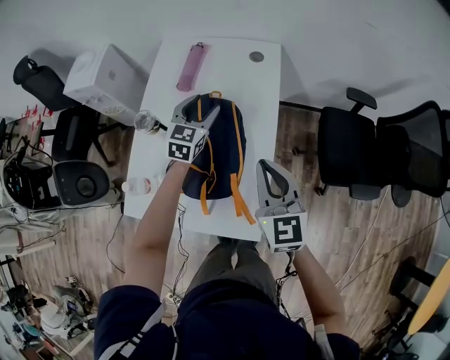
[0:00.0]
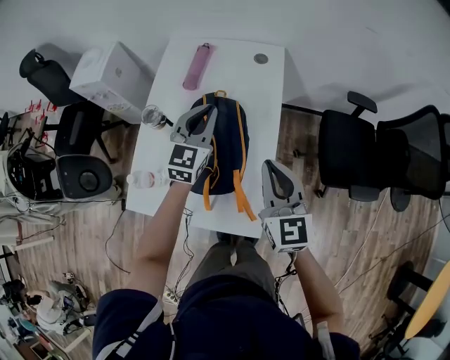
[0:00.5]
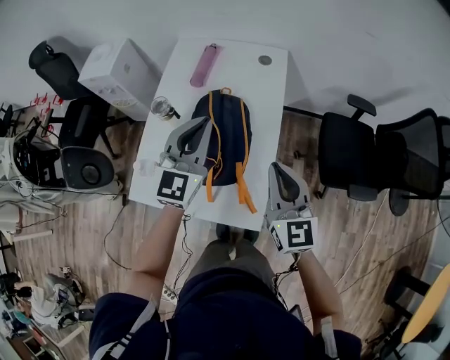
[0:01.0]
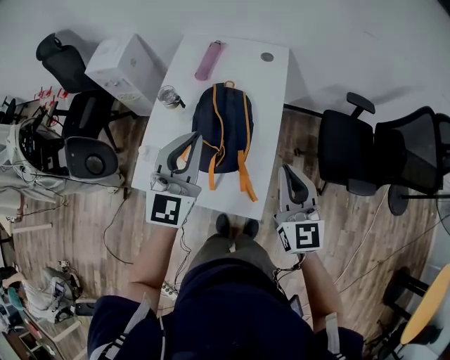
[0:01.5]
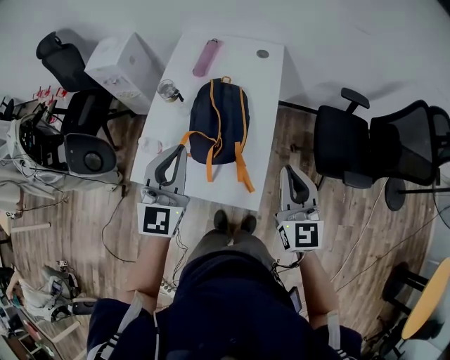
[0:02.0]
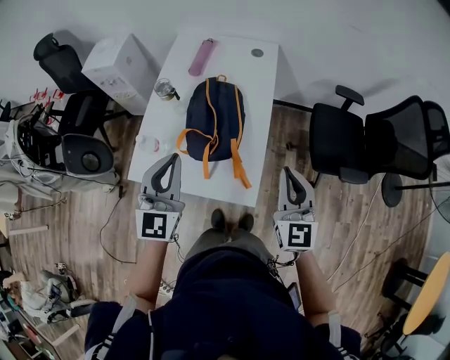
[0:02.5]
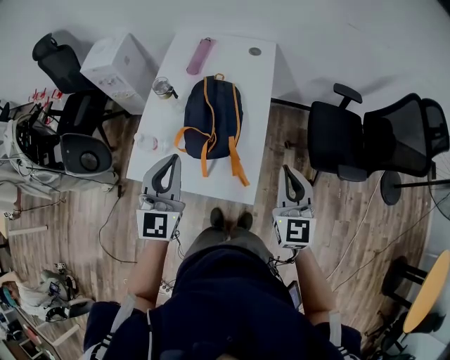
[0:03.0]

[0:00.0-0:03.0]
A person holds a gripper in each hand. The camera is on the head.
0:00.0 to 0:01.5: The left gripper is displaced backward and upward by roughly 30 cm, swivels some 20 degrees, and closes up, while the right gripper heads backward and upward, covering some 10 cm.
0:01.5 to 0:03.0: The left gripper is displaced backward by some 10 cm. The right gripper is displaced backward by roughly 5 cm.

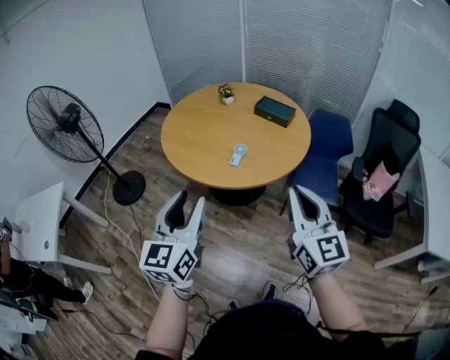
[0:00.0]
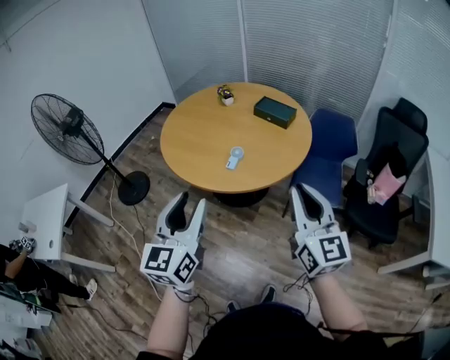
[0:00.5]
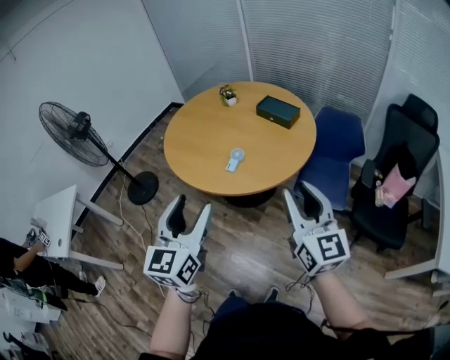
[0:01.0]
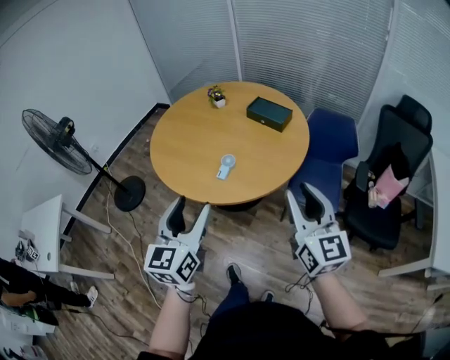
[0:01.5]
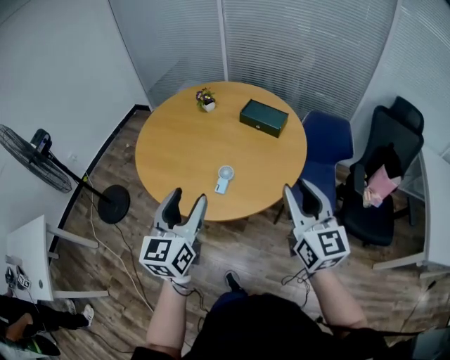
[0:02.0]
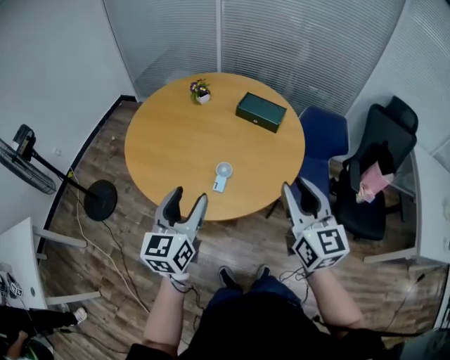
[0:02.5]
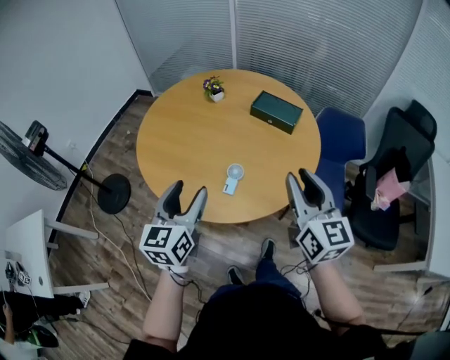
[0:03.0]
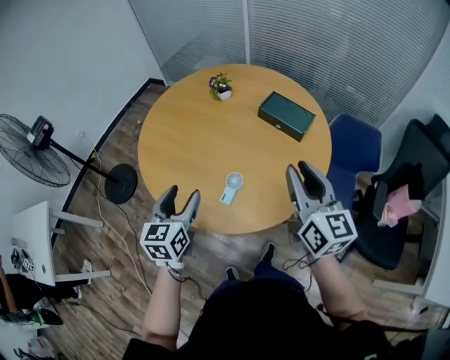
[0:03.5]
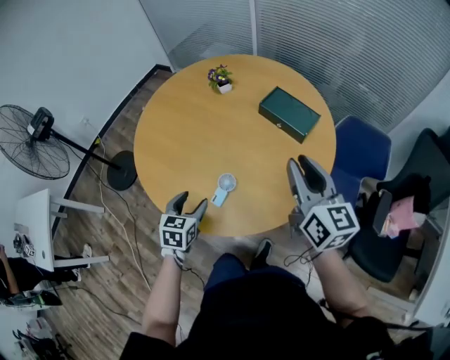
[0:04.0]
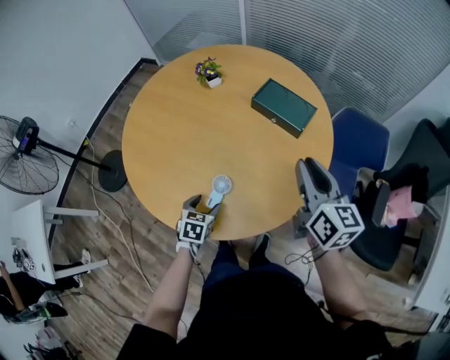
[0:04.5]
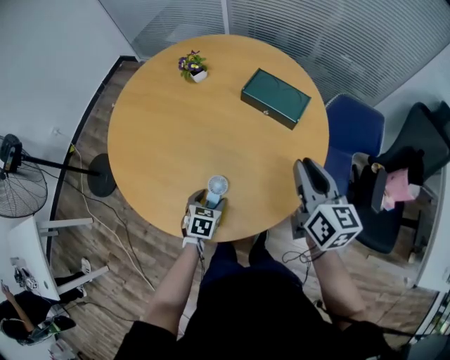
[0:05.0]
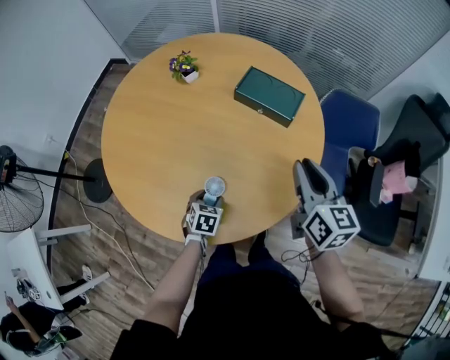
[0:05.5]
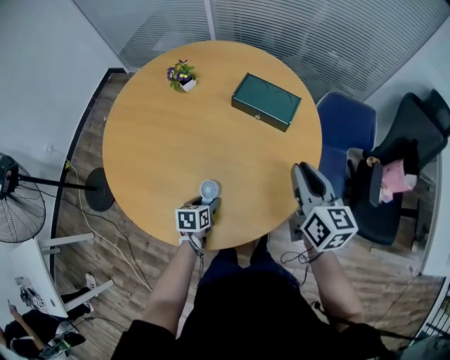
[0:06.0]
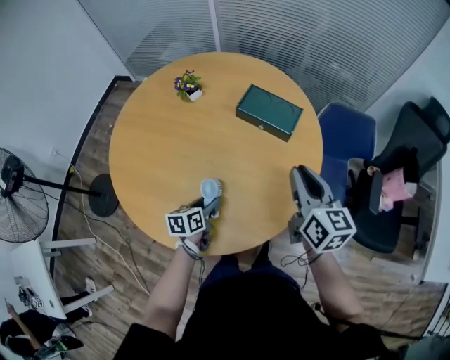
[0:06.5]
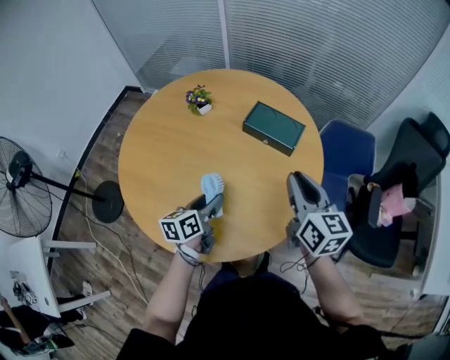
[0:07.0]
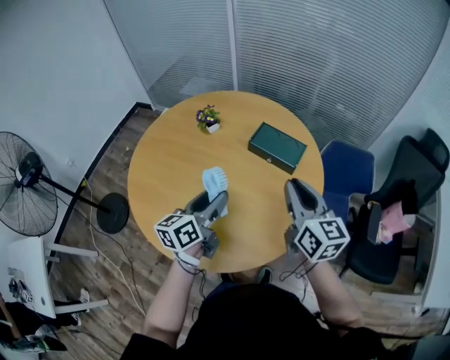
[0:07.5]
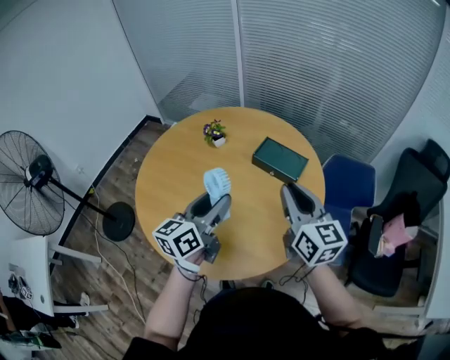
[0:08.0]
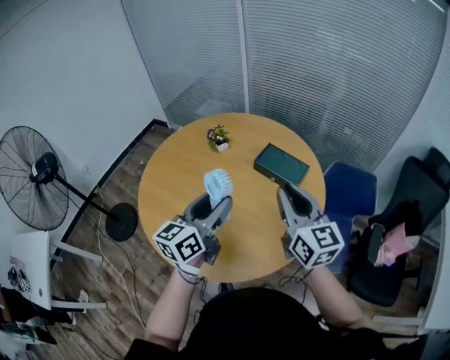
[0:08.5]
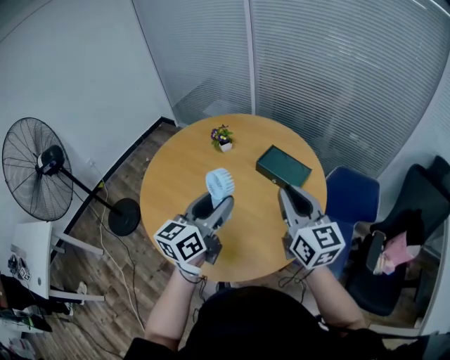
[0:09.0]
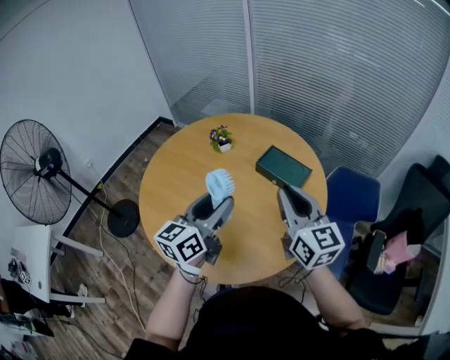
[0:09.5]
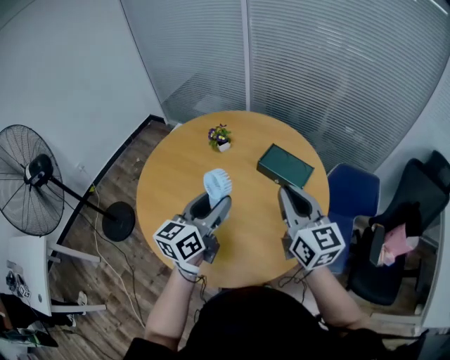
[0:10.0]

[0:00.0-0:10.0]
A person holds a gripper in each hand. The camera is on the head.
0:00.0 to 0:02.0: Both grippers move forward, about 25 cm. The right gripper opens.
0:02.0 to 0:04.0: The left gripper heads downward and forward, covering roughly 35 cm, and tips its fingers downward by about 40 degrees, while the right gripper goes about 30 cm forward.
0:04.0 to 0:06.0: The right gripper shifts some 10 cm downward and forward, and swivels about 20 degrees; the left gripper travels downward and forward by about 20 cm, and swivels some 30 degrees.
0:06.0 to 0:08.0: The left gripper moves upward, approximately 40 cm, and points its fingers some 50 degrees further upward, while the right gripper goes about 15 cm upward and to the left, and changes its angle by about 20 degrees.
0:08.0 to 0:10.0: The grippers make only small movements.

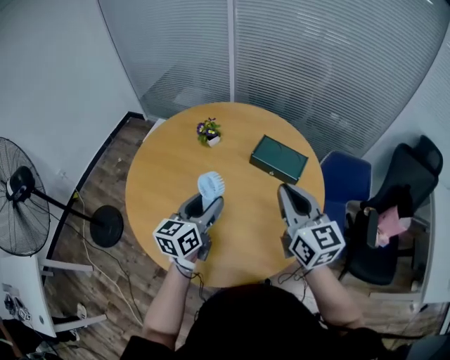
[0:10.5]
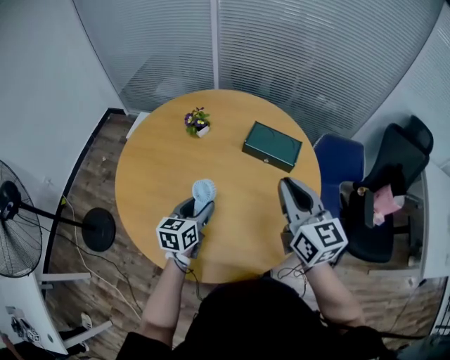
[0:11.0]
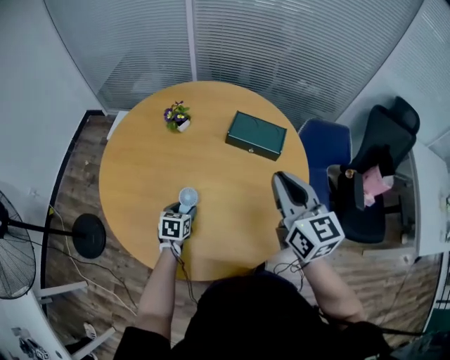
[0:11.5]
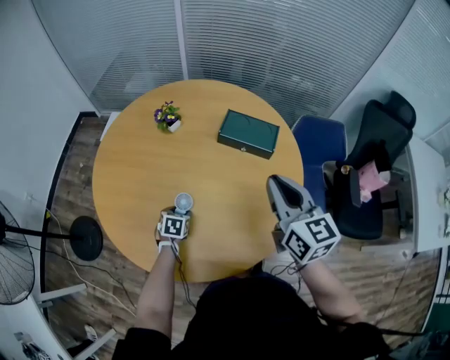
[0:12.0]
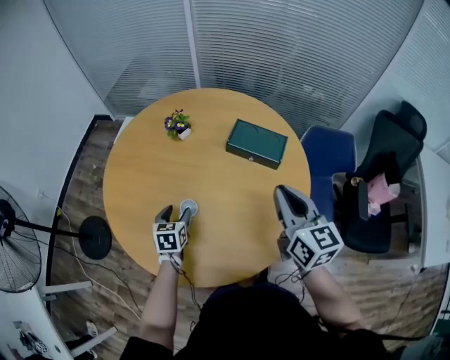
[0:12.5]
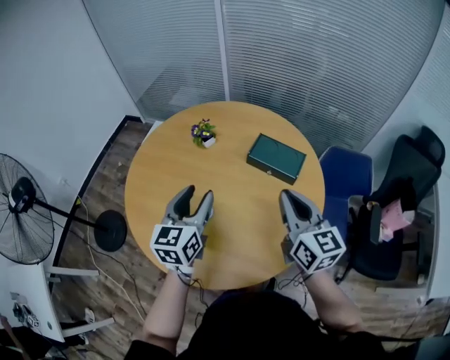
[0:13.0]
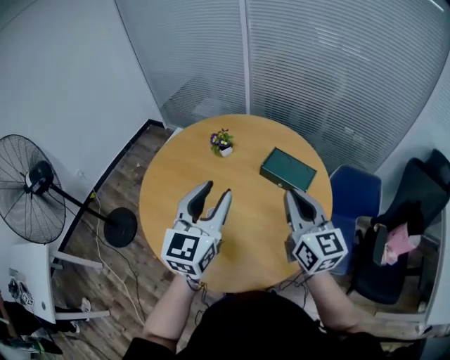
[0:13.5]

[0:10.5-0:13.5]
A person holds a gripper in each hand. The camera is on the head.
0:10.5 to 0:12.0: The left gripper is displaced downward by some 30 cm, and points its fingers some 50 degrees further downward.
0:12.0 to 0:13.5: The right gripper is displaced upward by approximately 5 cm, while the left gripper shifts roughly 40 cm upward, and tips its fingers upward by roughly 50 degrees.

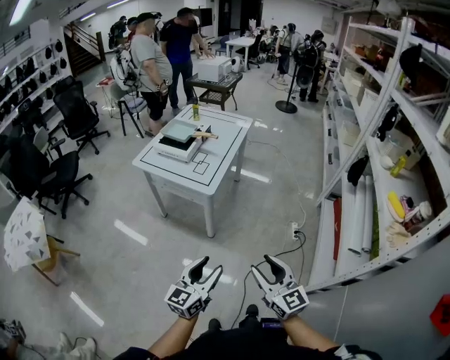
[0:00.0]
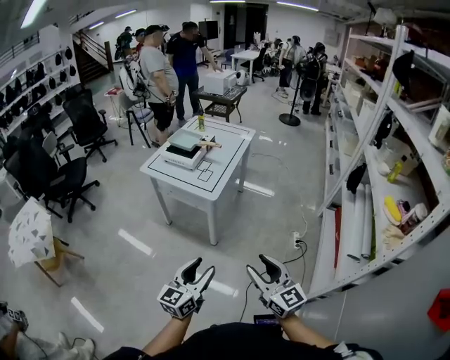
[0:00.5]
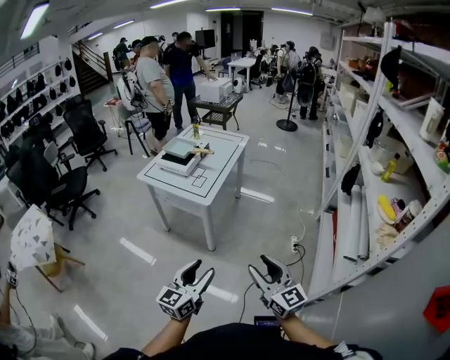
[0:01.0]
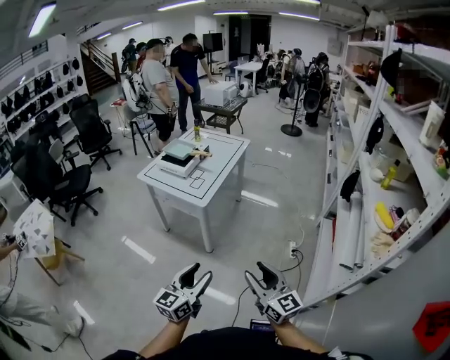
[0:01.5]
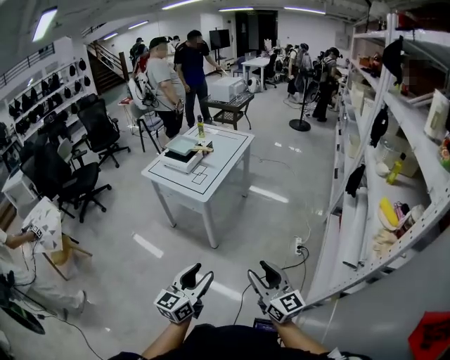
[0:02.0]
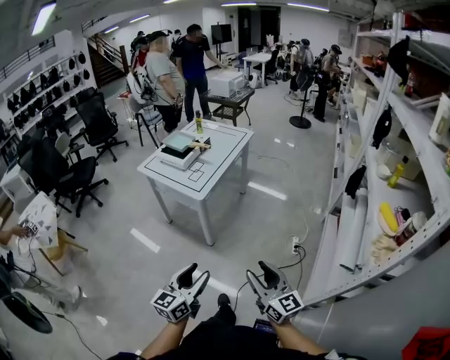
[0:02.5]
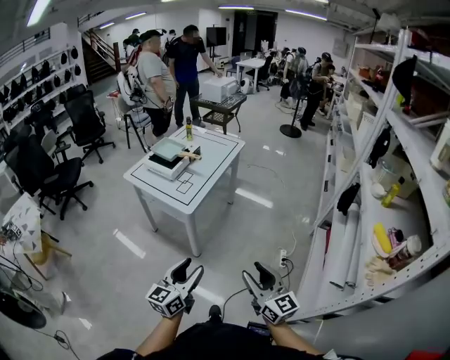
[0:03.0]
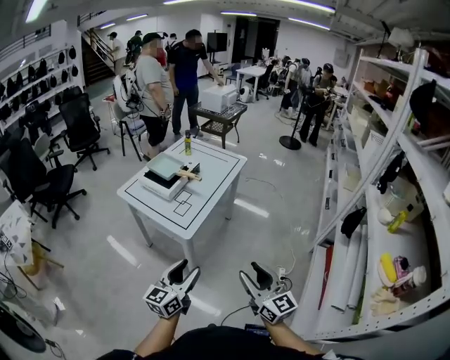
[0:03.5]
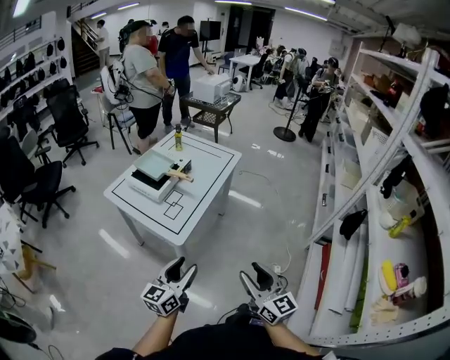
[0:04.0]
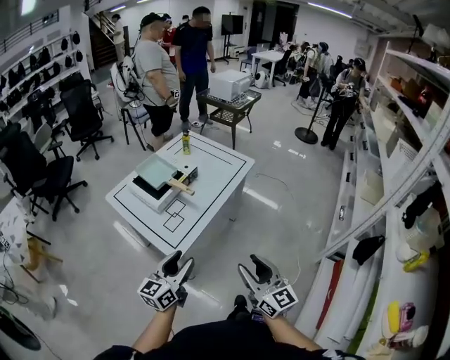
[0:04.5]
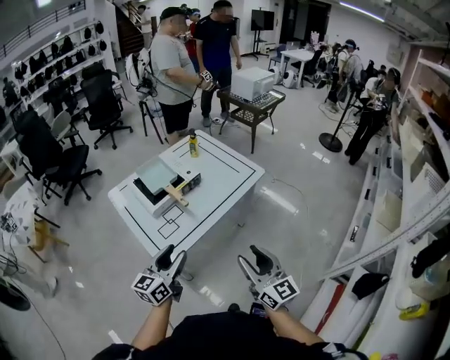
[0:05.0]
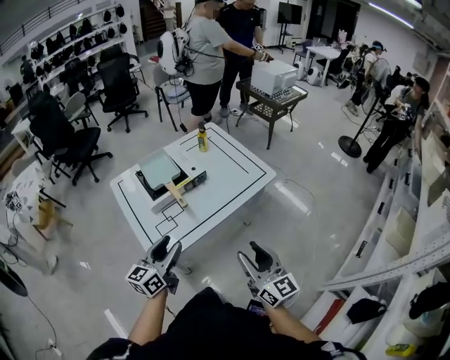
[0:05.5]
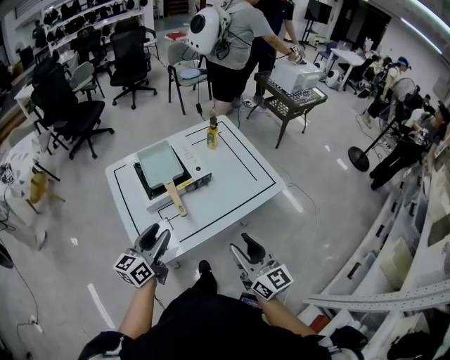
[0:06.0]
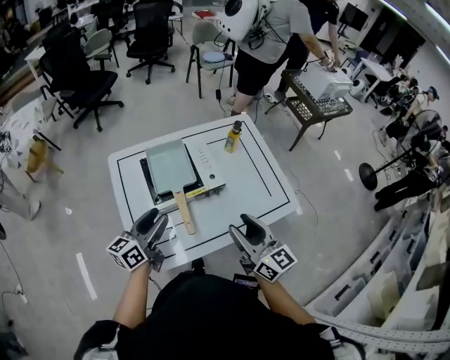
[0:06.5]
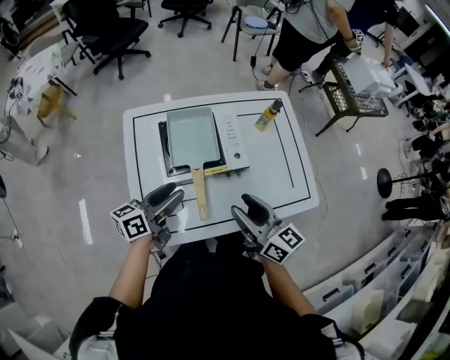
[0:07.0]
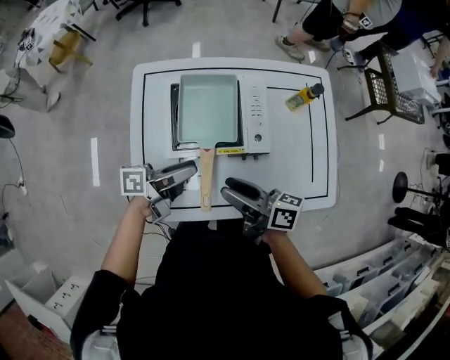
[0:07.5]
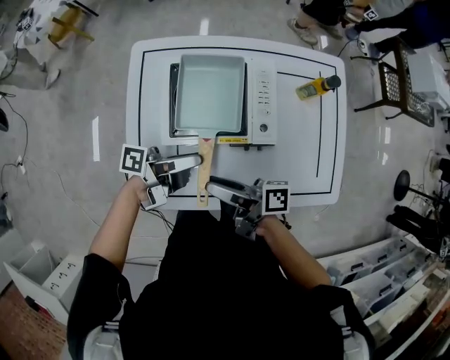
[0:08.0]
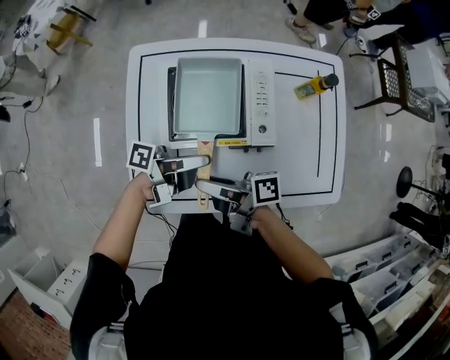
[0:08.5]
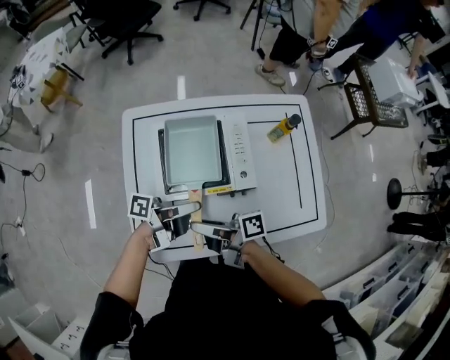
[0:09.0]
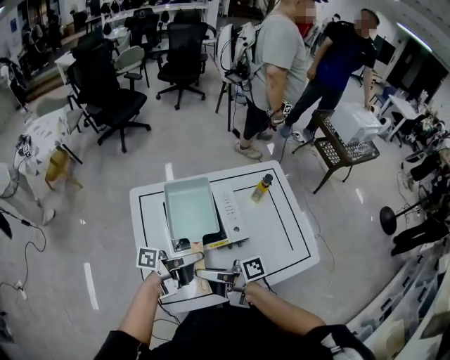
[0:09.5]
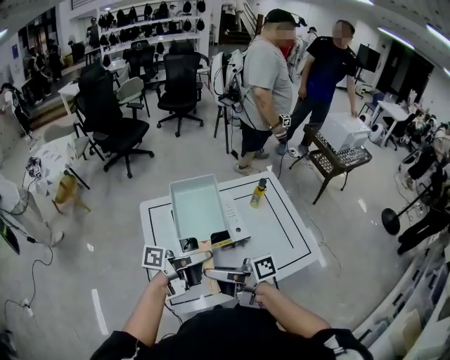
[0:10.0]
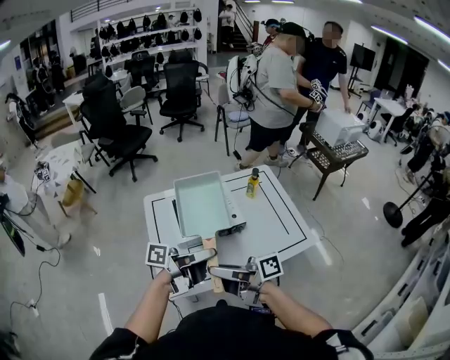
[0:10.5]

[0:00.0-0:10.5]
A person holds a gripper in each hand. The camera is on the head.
0:00.0 to 0:02.0: The right gripper shifts some 10 cm to the right, while the left gripper moves to the right, backward and upward, some 15 cm.
0:02.0 to 0:04.0: Both grippers travel together forward, some 30 cm.
0:04.0 to 0:06.5: Both grippers are carried about 50 cm. The left gripper changes its angle by approximately 40 degrees. The right gripper turns by about 50 degrees.
0:06.5 to 0:08.5: The right gripper ends up approximately 20 cm from where it was, and turns by approximately 90 degrees. The left gripper moves downward, about 10 cm, and rotates around the line of its fingers by roughly 60 degrees, counterclockwise from behind.
0:08.5 to 0:10.5: Both grippers move upward, approximately 20 cm. The right gripper swivels some 30 degrees.
